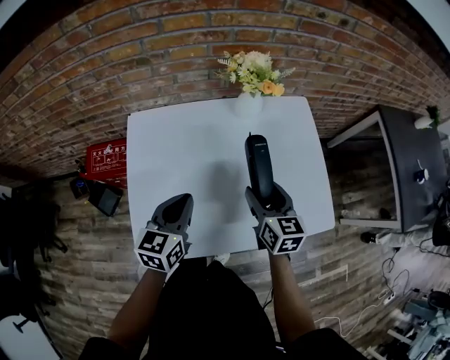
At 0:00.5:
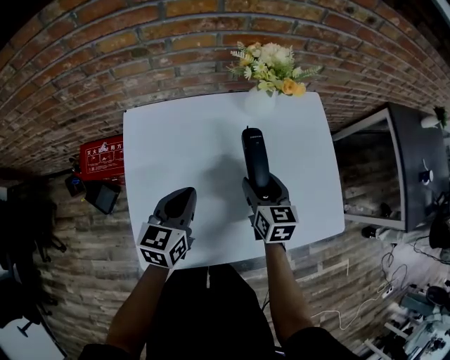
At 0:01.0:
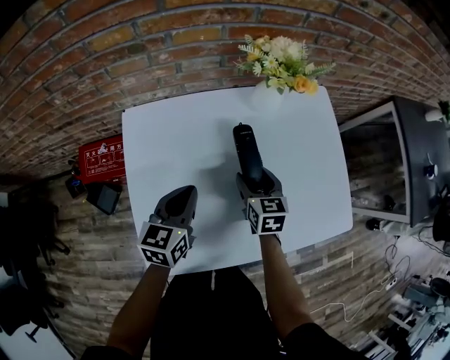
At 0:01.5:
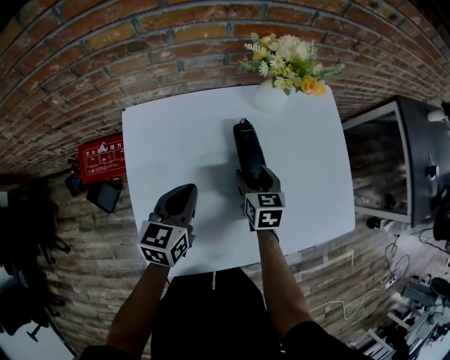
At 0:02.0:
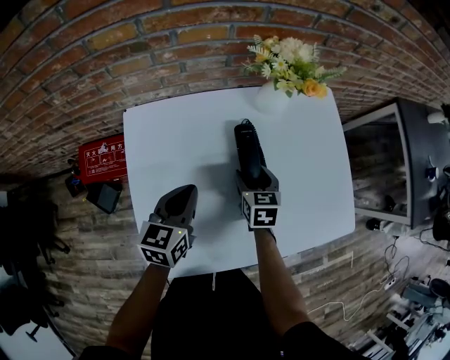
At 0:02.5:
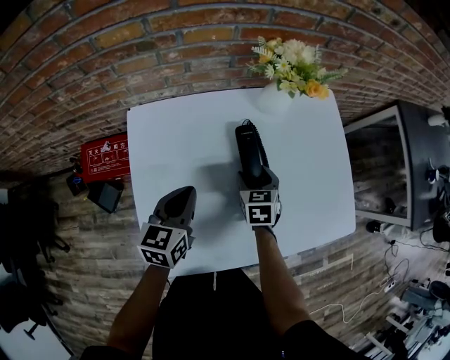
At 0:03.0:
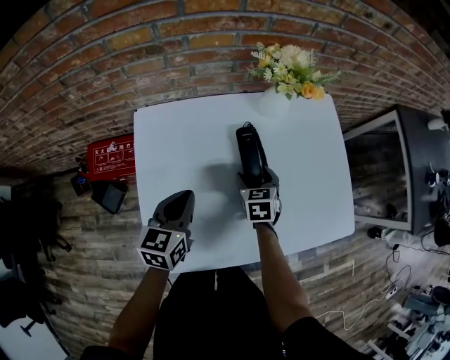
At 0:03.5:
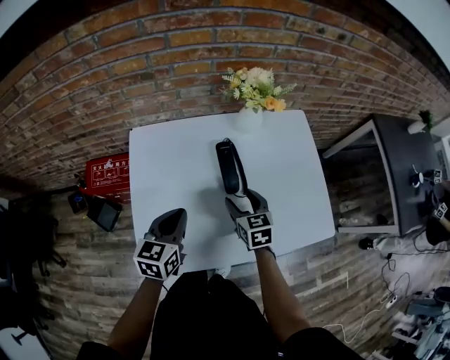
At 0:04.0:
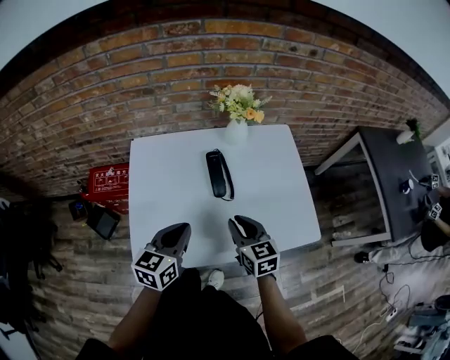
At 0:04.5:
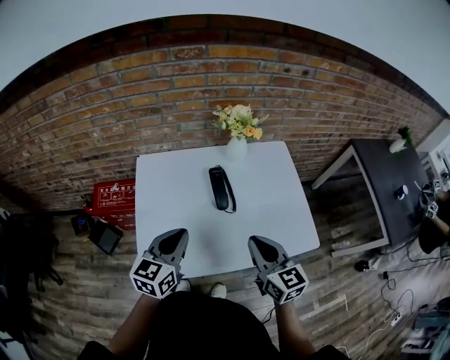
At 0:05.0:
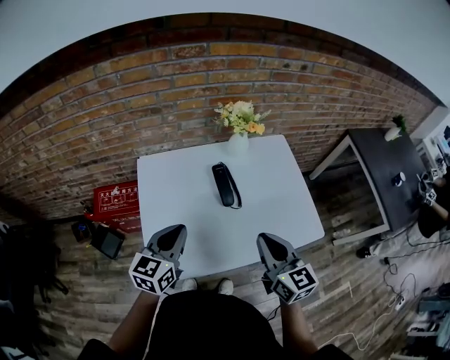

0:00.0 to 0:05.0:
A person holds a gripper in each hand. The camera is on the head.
0:00.0 to 0:02.5: The left gripper goes about 10 cm downward, to the left and forward, while the right gripper heads downward, to the left and forward, covering about 20 cm, and changes its angle by approximately 30 degrees.
0:02.5 to 0:05.0: The left gripper travels upward and backward by some 20 cm. The right gripper moves upward and backward, about 35 cm, tips its fingers upward by approximately 40 degrees, and closes its fingers.

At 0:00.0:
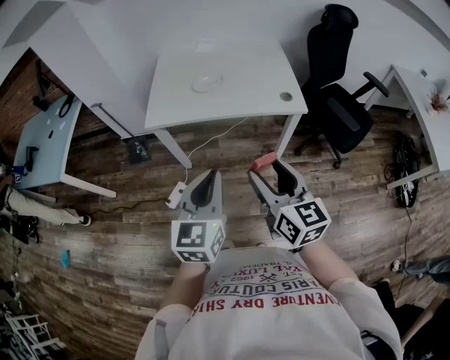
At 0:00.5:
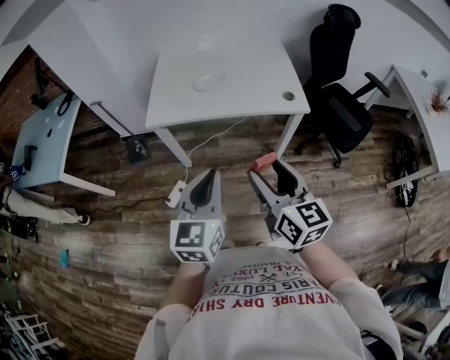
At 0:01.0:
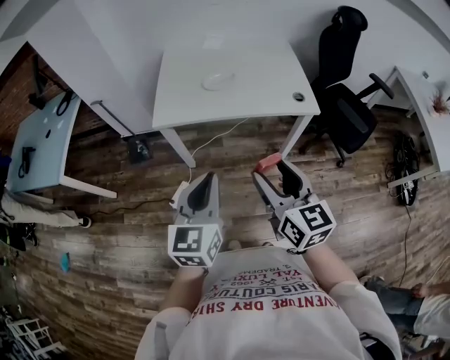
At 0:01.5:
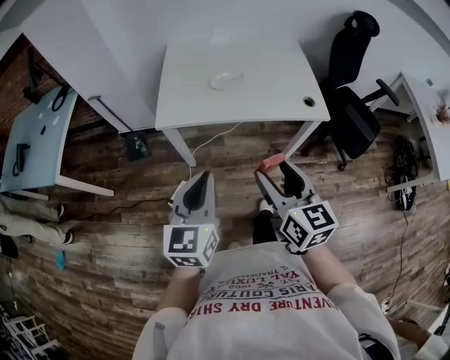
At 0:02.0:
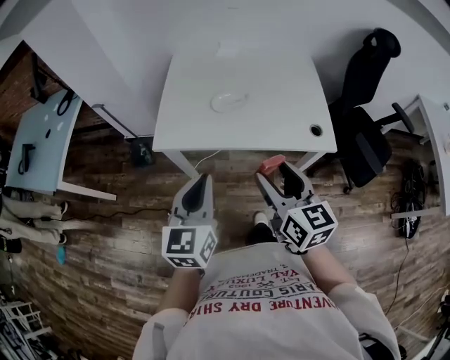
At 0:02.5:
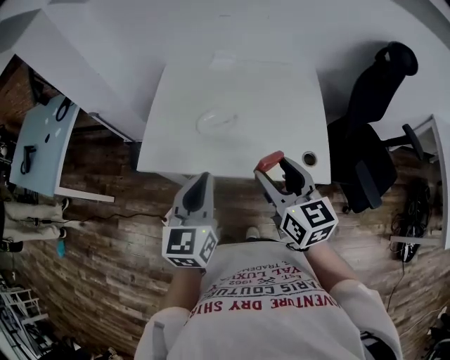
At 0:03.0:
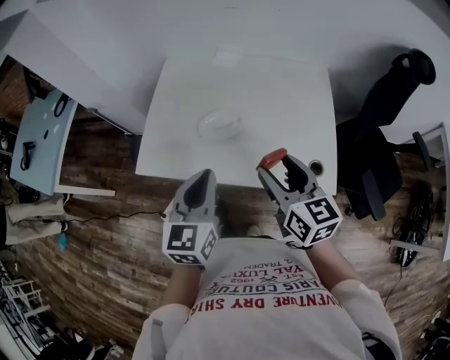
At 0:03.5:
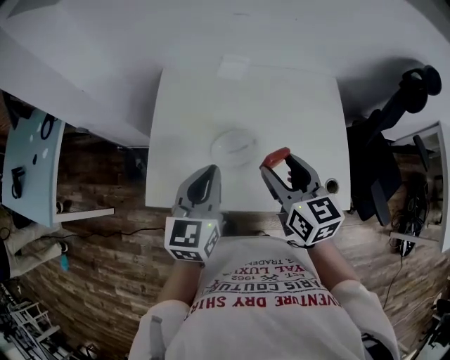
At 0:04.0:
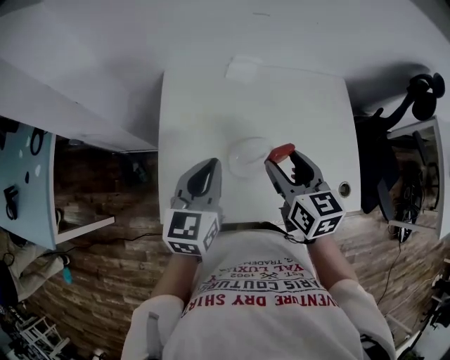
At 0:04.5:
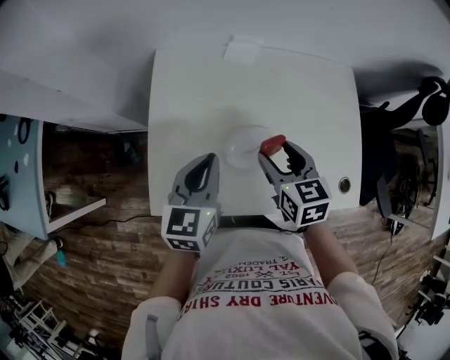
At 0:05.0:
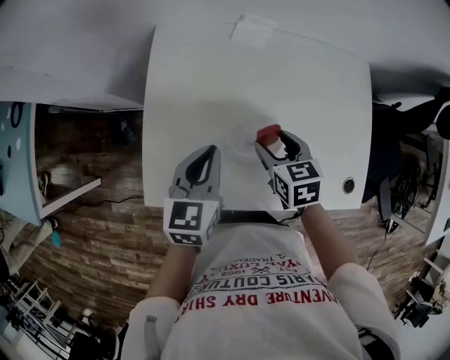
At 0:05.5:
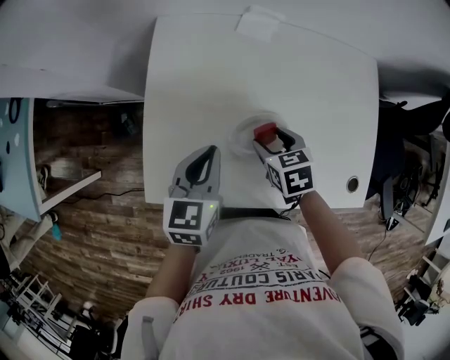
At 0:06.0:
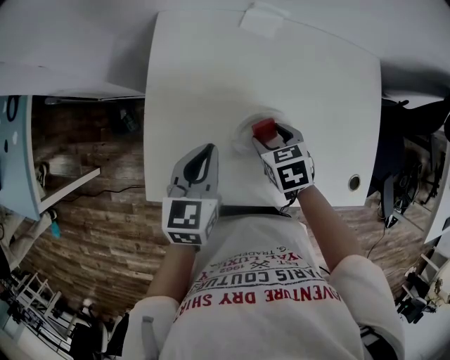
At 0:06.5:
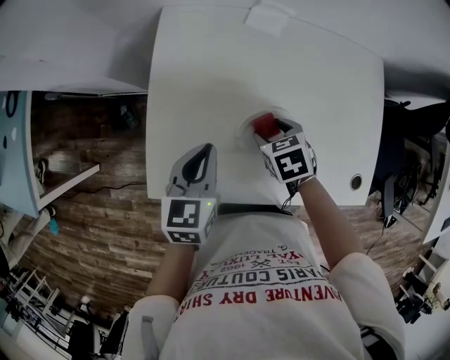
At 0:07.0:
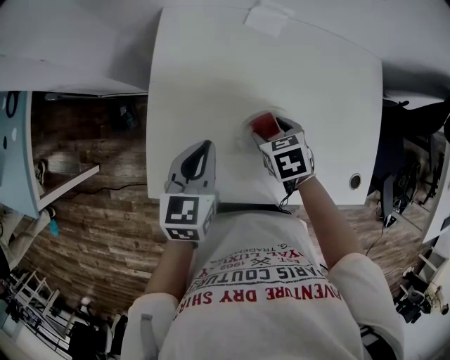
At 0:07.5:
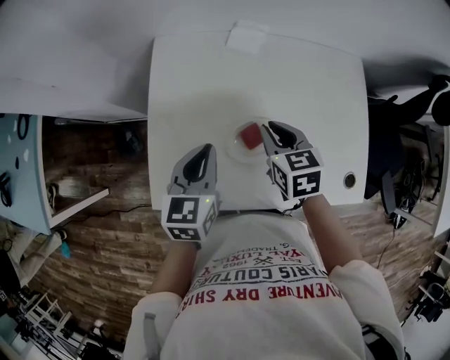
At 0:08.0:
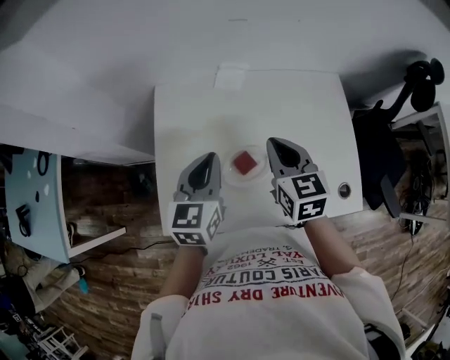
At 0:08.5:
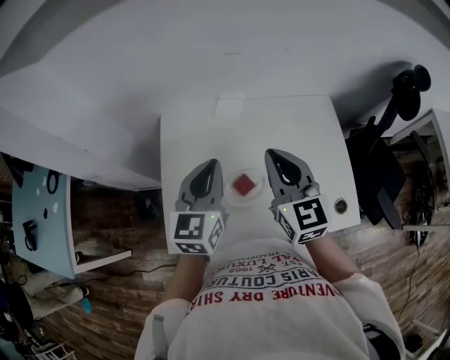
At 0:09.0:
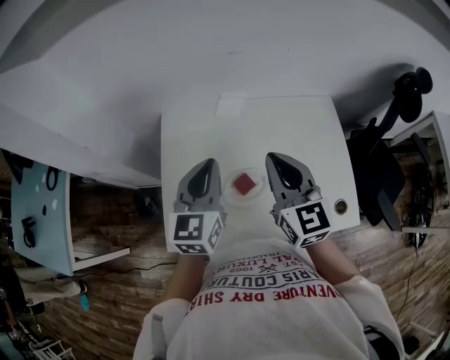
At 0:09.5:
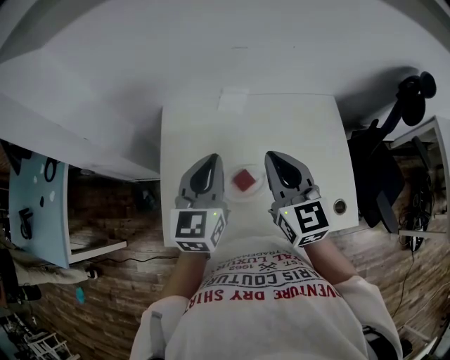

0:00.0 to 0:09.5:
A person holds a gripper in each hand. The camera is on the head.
0:00.0 to 0:02.0: The right gripper travels forward by roughly 20 cm, while the left gripper moves forward and to the left, approximately 20 cm.
0:02.0 to 0:04.0: The two grippers go some 35 cm forward.
0:04.0 to 0:05.5: The right gripper moves downward, about 20 cm, and tips its fingers downward by approximately 30 degrees. Meanwhile the left gripper is displaced downward by some 10 cm.
0:05.5 to 0:07.5: The right gripper travels upward by some 10 cm, and closes up.
0:07.5 to 0:09.5: The left gripper goes about 15 cm upward and to the right, and changes its angle by roughly 20 degrees, while the right gripper heads upward, covering some 20 cm, and tilts its fingers about 30 degrees upward.

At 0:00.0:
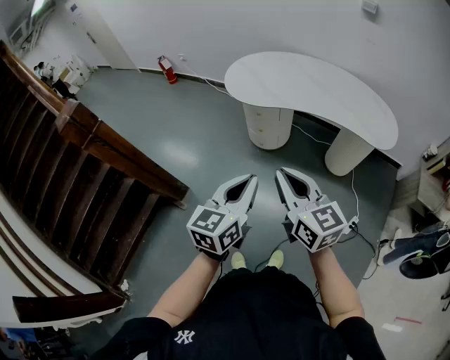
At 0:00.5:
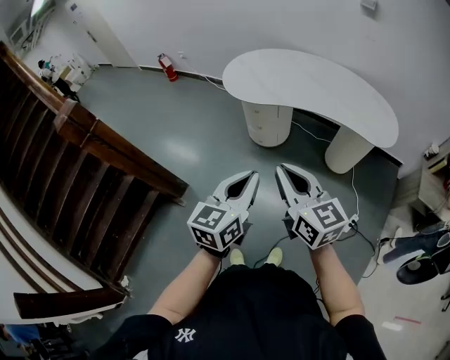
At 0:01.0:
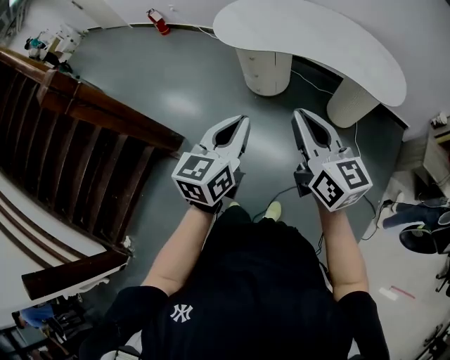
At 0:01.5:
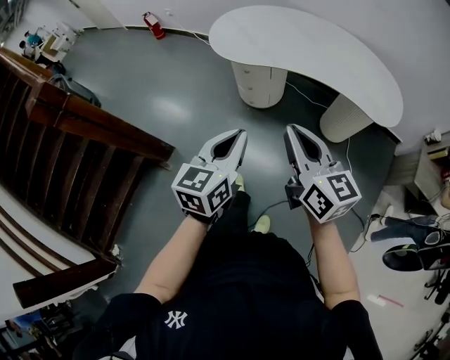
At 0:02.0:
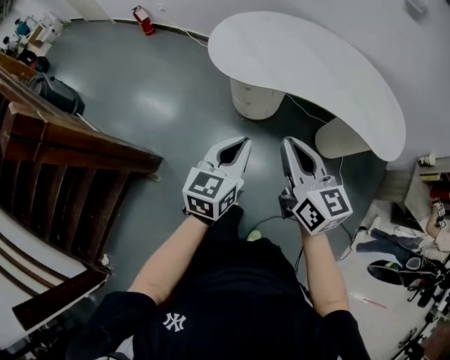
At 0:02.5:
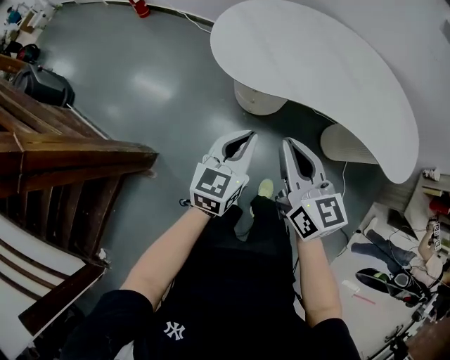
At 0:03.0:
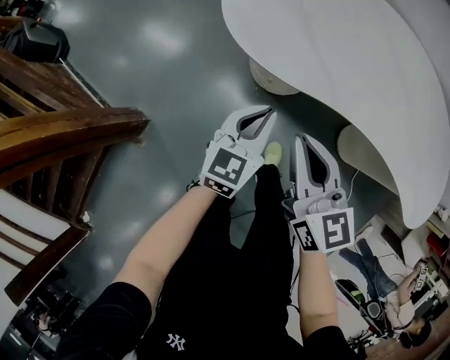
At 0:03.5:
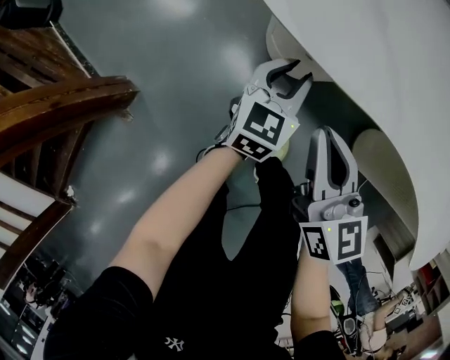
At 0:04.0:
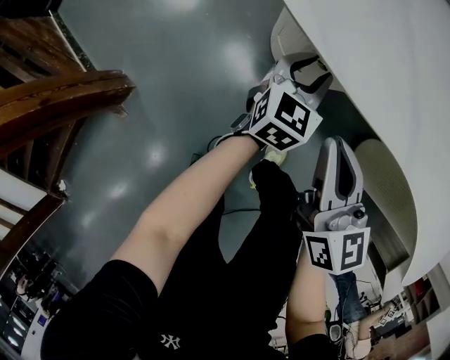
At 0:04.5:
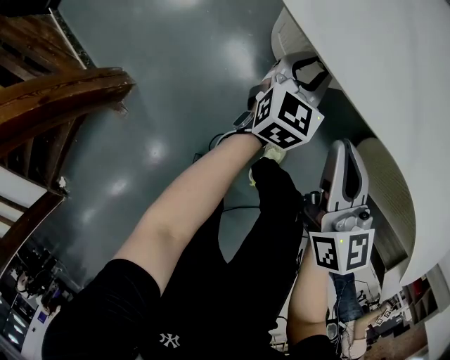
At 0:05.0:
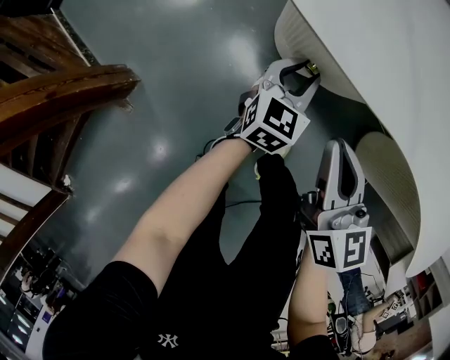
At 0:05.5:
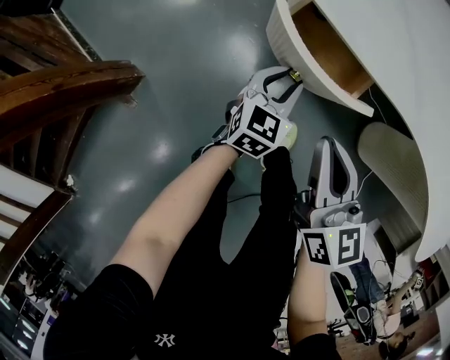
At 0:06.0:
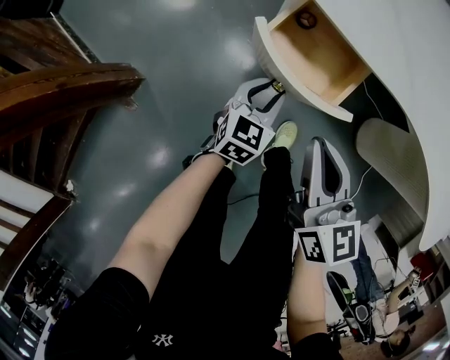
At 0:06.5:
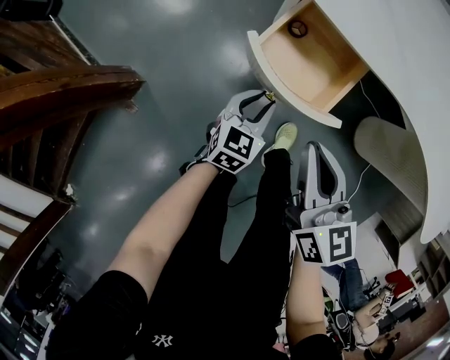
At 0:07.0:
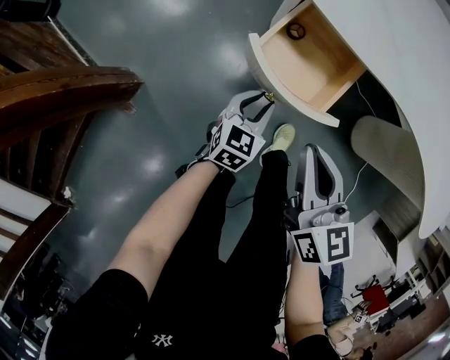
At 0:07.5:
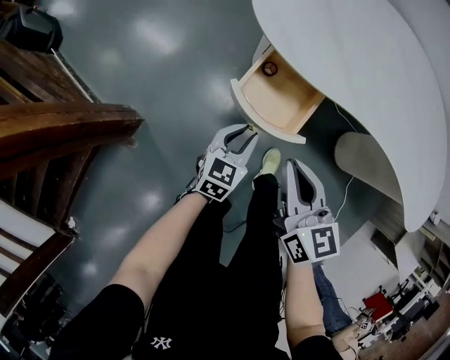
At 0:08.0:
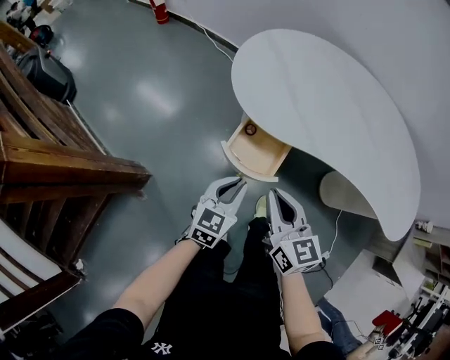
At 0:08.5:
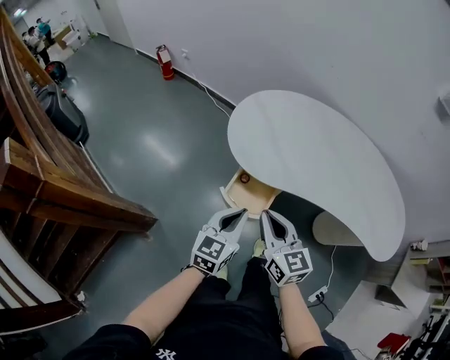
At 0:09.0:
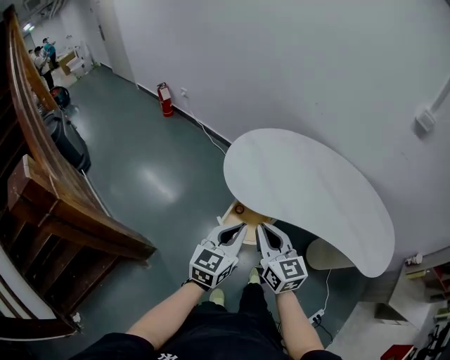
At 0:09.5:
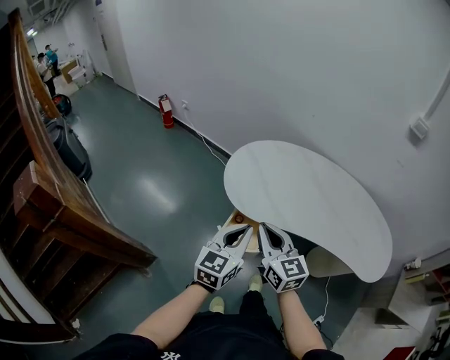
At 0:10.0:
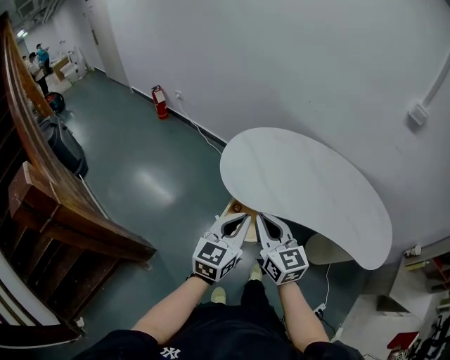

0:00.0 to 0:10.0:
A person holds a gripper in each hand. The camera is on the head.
0:00.0 to 0:02.0: The two grippers go some 25 cm forward.
0:02.0 to 0:04.0: Both grippers travel together downward and forward, approximately 60 cm. The left gripper opens.
0:04.0 to 0:06.0: Both grippers travel together backward and to the left, approximately 20 cm.
0:06.0 to 0:08.0: The left gripper heads upward, covering about 25 cm. The right gripper moves upward, approximately 15 cm.
0:08.0 to 0:10.0: The two grippers go some 25 cm upward.

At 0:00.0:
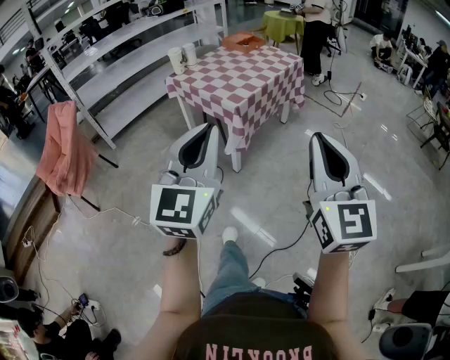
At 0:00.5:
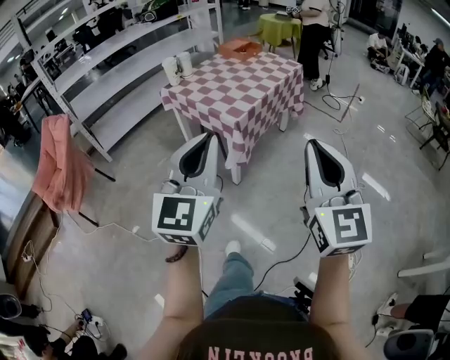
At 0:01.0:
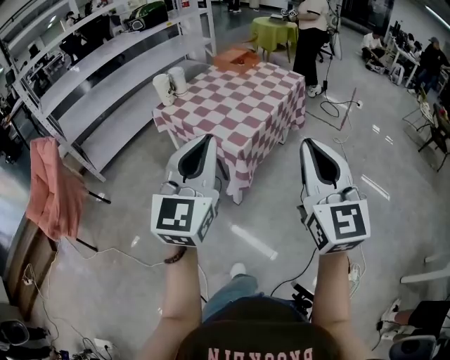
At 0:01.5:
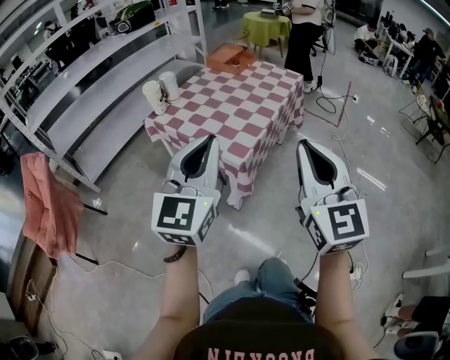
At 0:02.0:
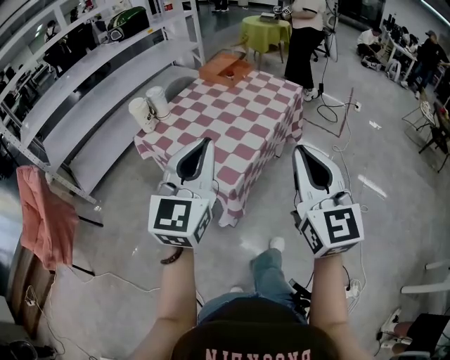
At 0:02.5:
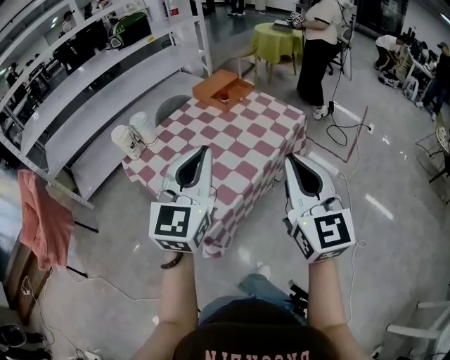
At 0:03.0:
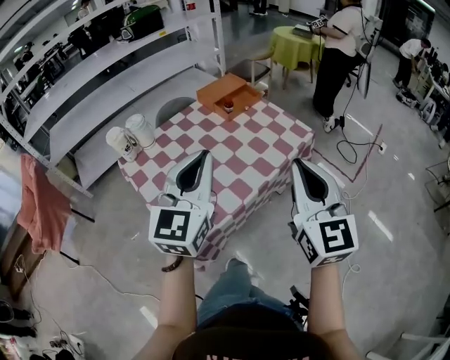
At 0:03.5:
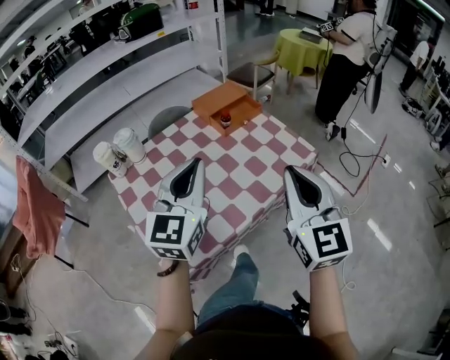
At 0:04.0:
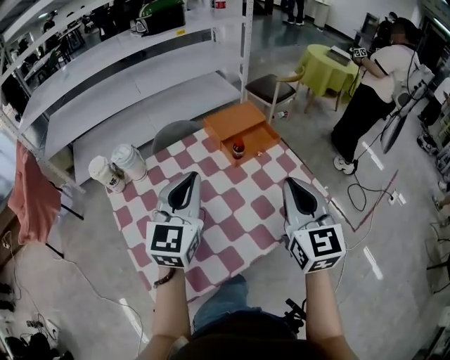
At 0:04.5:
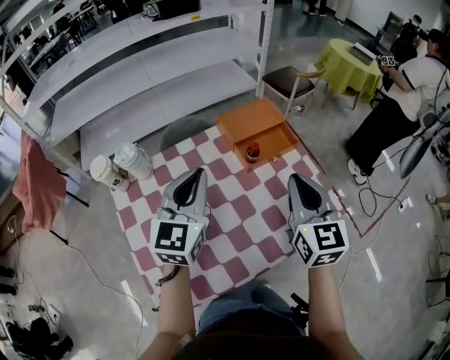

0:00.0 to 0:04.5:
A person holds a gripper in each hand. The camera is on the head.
0:00.0 to 0:02.0: The pair of grippers is taken forward, about 40 cm.
0:02.0 to 0:04.5: Both grippers are carried some 60 cm. The left gripper changes its angle by approximately 30 degrees, while the right gripper swivels roughly 30 degrees.
